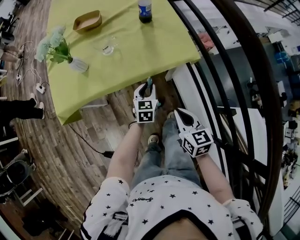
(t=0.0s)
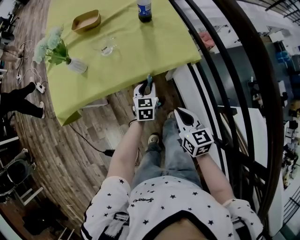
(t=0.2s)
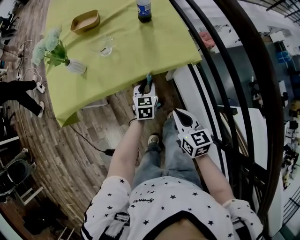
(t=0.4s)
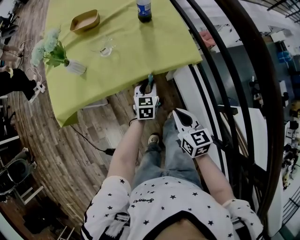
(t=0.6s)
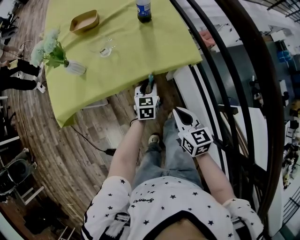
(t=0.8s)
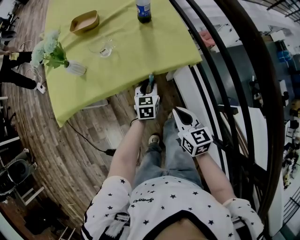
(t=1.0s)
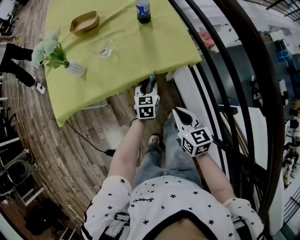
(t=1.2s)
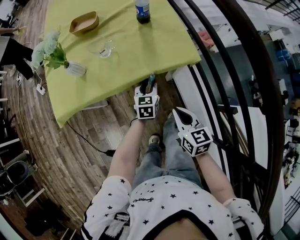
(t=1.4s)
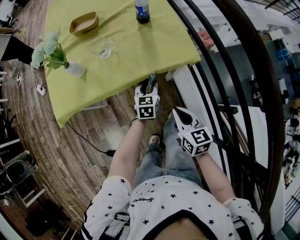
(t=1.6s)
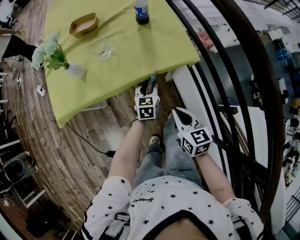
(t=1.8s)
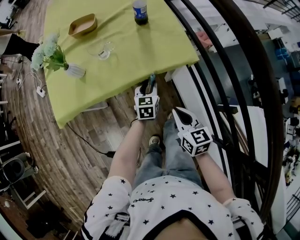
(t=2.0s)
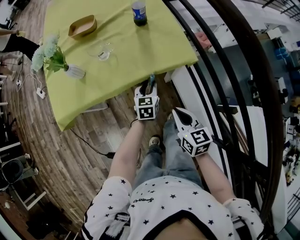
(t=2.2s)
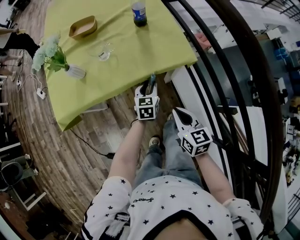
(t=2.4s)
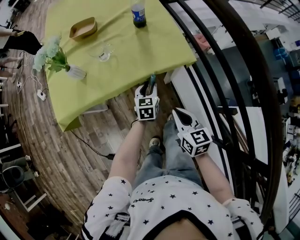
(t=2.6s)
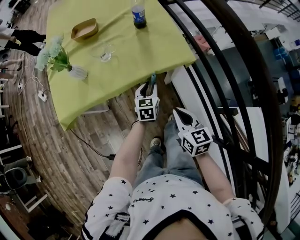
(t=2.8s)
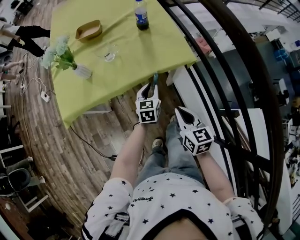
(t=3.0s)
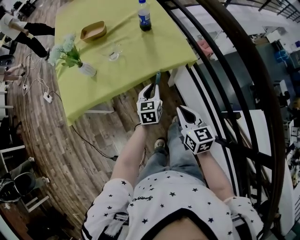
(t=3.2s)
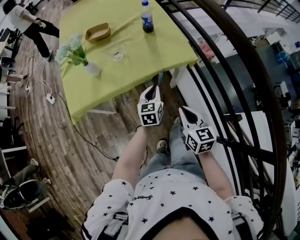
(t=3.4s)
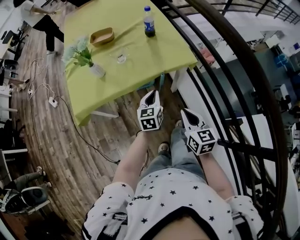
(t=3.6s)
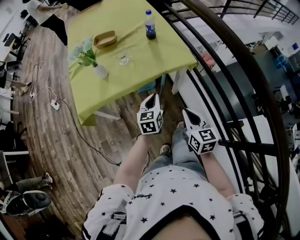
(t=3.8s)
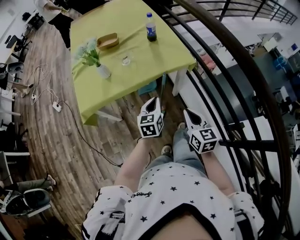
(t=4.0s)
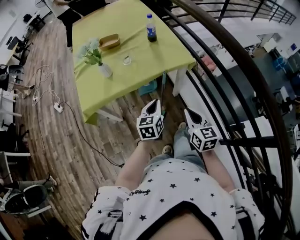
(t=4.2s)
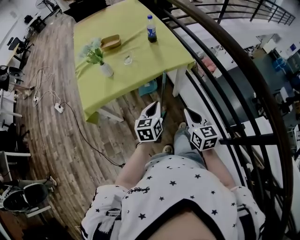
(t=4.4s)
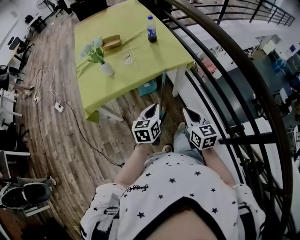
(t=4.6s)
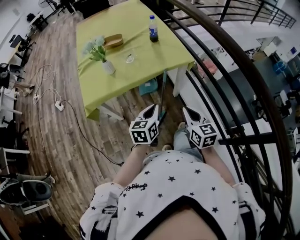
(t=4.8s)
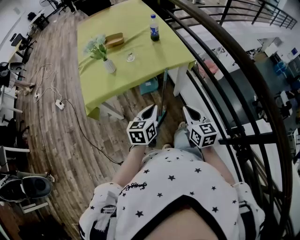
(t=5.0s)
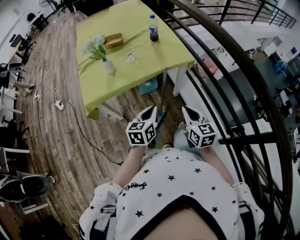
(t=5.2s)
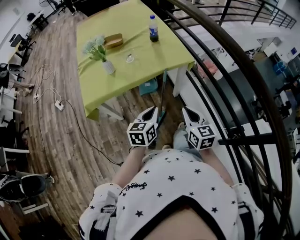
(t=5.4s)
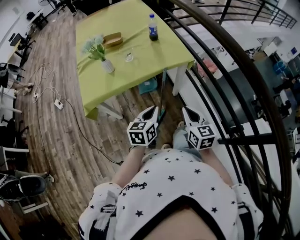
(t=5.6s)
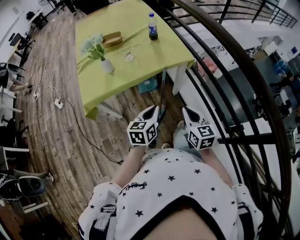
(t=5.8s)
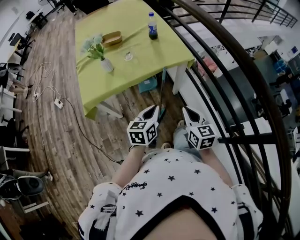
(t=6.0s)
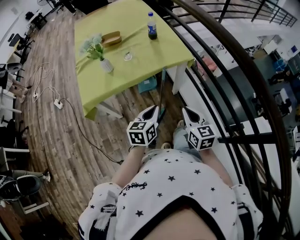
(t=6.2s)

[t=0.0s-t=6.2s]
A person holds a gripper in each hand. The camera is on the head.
t=0.0s to t=1.6s: The grippers make only small movements.
t=1.6s to t=3.2s: The right gripper changes place by some 5 cm. Meanwhile the left gripper goes roughly 5 cm upward.
t=3.2s to t=4.6s: The right gripper heads backward and upward, covering some 15 cm. Meanwhile the left gripper travels backward and upward by approximately 25 cm.
t=4.6s to t=6.2s: The grippers make only small movements.

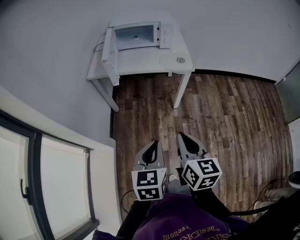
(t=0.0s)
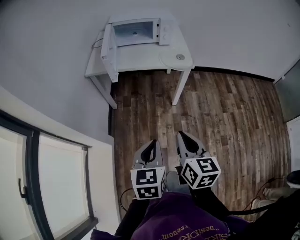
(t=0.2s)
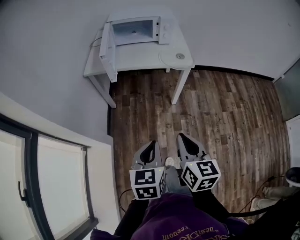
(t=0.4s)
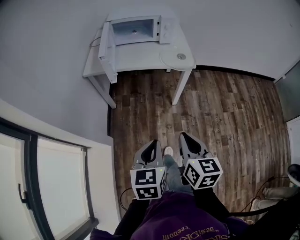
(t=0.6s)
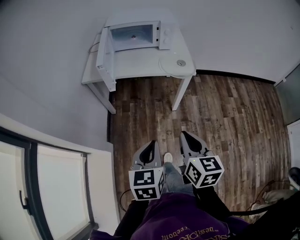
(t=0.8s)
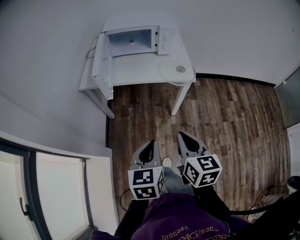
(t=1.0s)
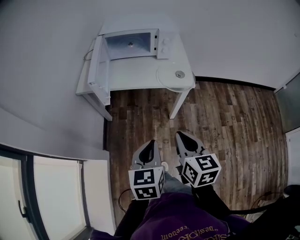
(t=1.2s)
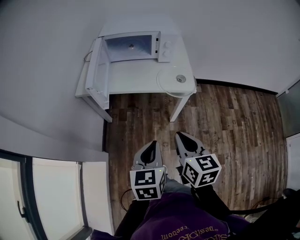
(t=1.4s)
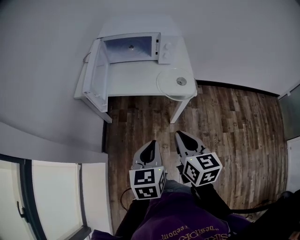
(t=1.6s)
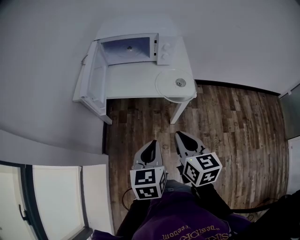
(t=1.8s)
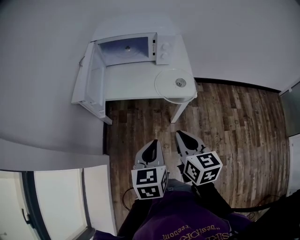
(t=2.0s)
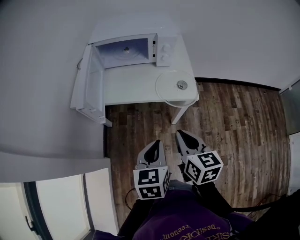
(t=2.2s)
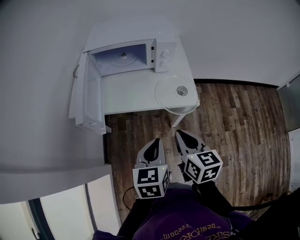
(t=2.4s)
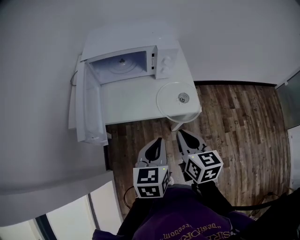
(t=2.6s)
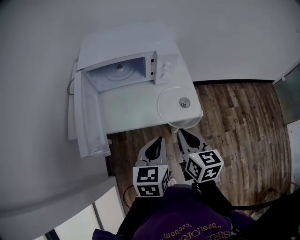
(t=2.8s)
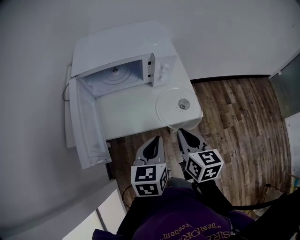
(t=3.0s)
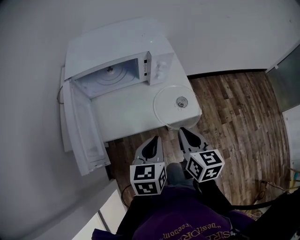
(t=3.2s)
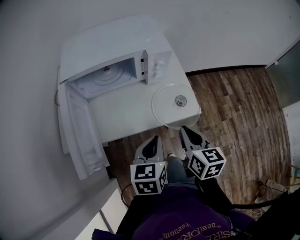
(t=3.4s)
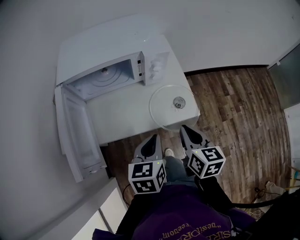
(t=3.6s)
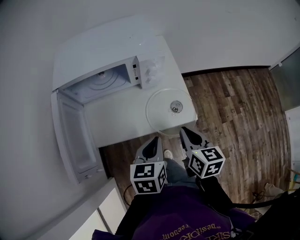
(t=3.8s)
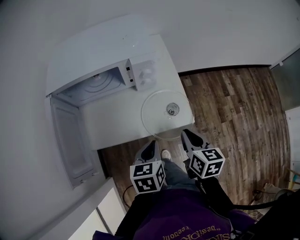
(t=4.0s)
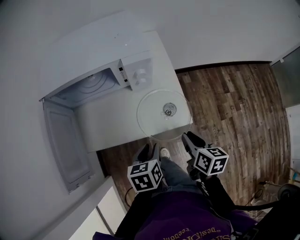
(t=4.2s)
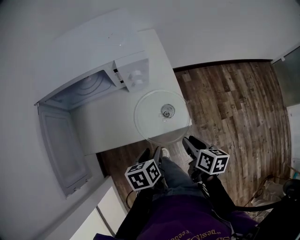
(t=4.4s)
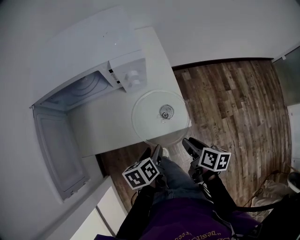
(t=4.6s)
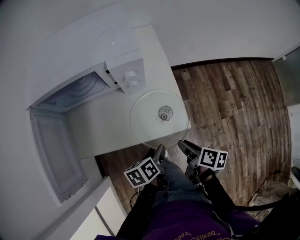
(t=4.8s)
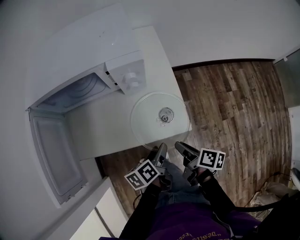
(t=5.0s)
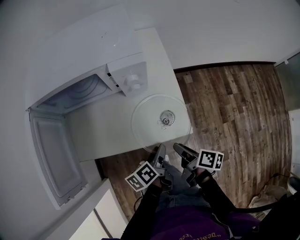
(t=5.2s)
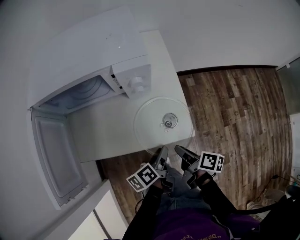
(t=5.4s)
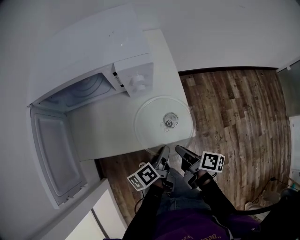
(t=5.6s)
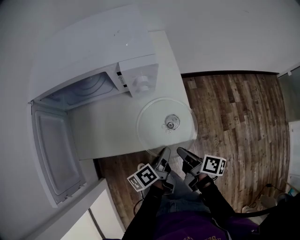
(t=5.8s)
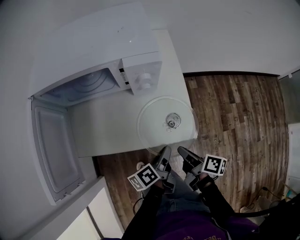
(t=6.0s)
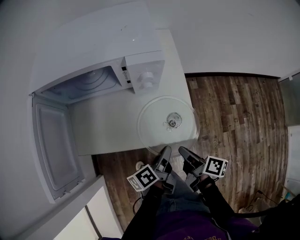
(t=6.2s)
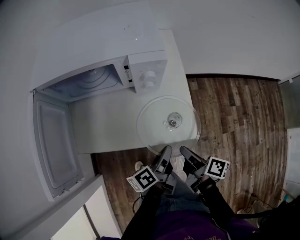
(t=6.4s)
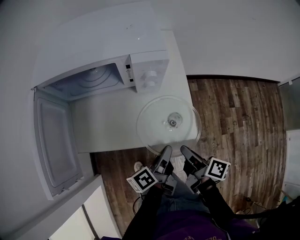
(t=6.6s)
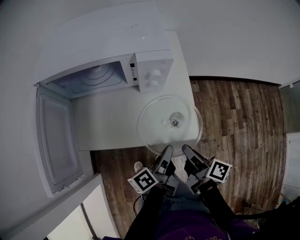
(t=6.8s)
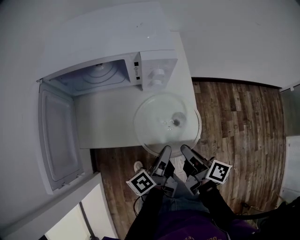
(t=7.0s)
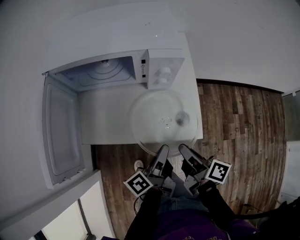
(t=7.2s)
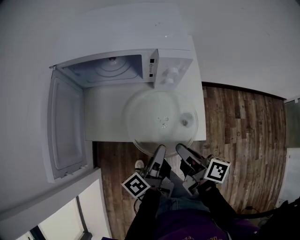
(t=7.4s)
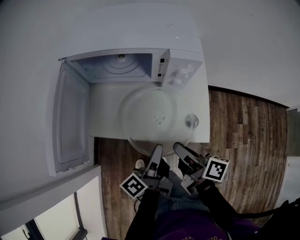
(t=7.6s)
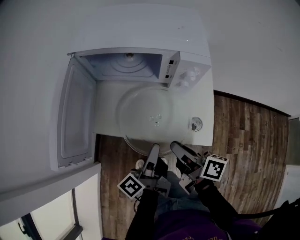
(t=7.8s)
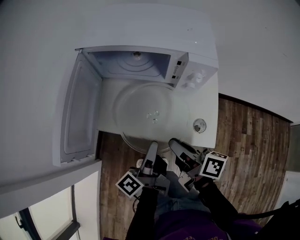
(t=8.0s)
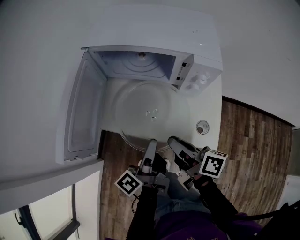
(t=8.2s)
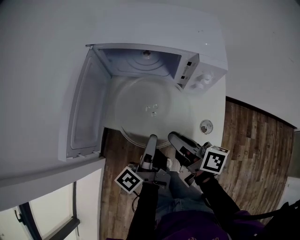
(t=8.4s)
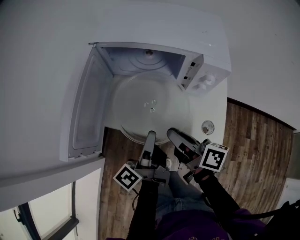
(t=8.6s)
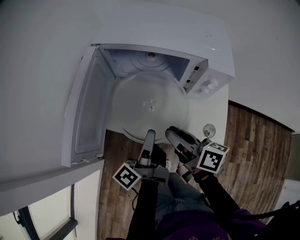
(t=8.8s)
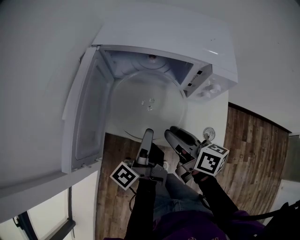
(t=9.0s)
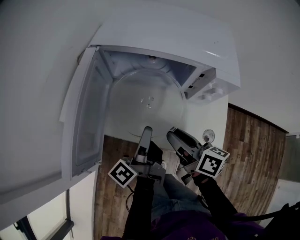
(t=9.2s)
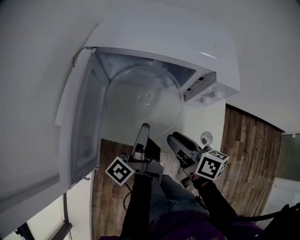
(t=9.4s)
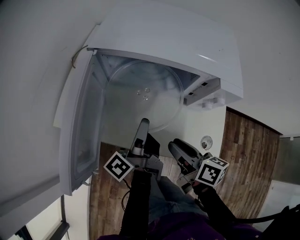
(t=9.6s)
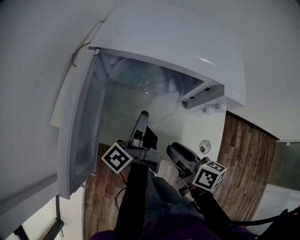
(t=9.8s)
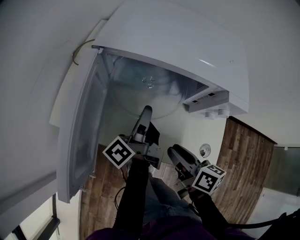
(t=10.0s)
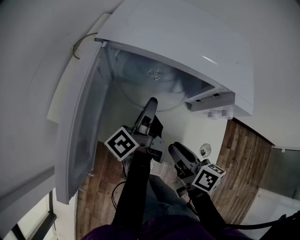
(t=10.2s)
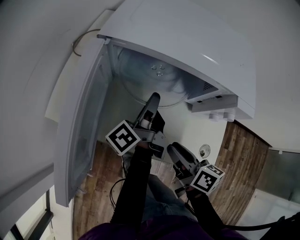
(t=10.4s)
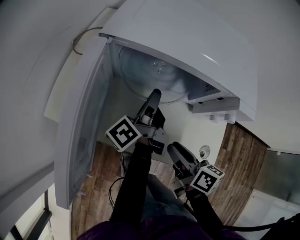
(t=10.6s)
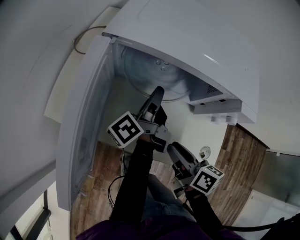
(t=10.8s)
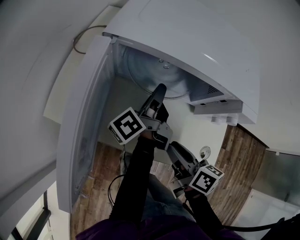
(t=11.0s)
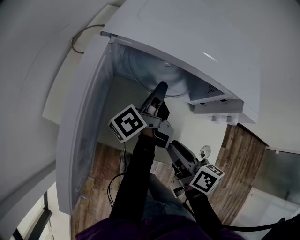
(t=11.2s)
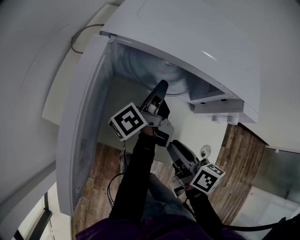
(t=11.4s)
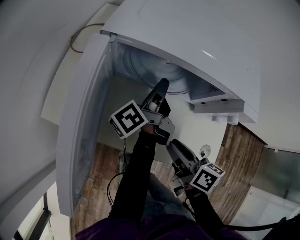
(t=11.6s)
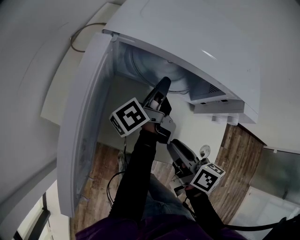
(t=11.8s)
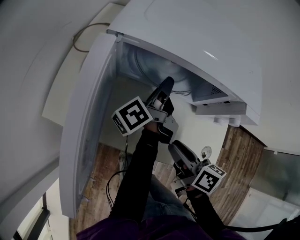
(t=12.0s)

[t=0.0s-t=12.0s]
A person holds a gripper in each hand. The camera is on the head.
t=0.0s to t=1.6s: Both grippers travel together forward, about 20 cm.
t=1.6s to t=3.0s: The grippers both shift forward by approximately 20 cm.
t=3.0s to t=4.4s: The left gripper is displaced downward and to the right by roughly 20 cm, changes its angle by approximately 30 degrees, and opens. The right gripper goes some 20 cm to the right and downward, rotates approximately 30 degrees, and opens its fingers.
t=4.4s to t=6.0s: The right gripper goes roughly 5 cm downward, and swivels roughly 30 degrees. The left gripper shifts about 5 cm to the right, rotates some 40 degrees, and closes.
t=6.0s to t=7.6s: The right gripper goes approximately 15 cm upward and to the left, and changes its angle by roughly 20 degrees, while the left gripper travels to the left and upward by approximately 15 cm, and turns by about 30 degrees.
t=7.6s to t=9.0s: The two grippers go about 15 cm forward and to the left. The right gripper rotates approximately 20 degrees.
t=9.0s to t=10.4s: The left gripper shifts some 15 cm forward. Meanwhile the right gripper ends up roughly 5 cm from where it was.
t=10.4s to t=12.0s: The left gripper moves forward, approximately 5 cm.

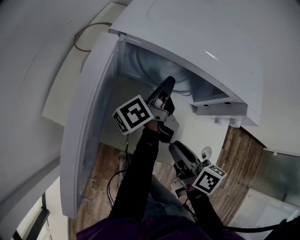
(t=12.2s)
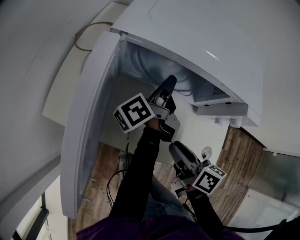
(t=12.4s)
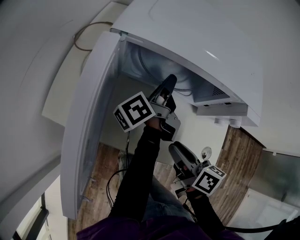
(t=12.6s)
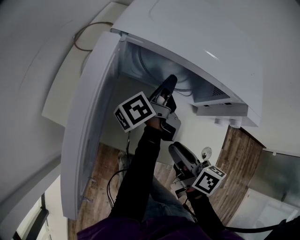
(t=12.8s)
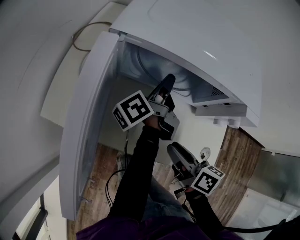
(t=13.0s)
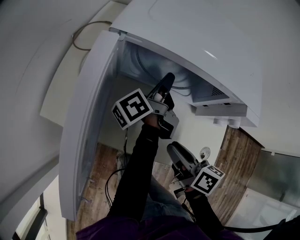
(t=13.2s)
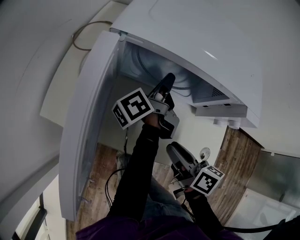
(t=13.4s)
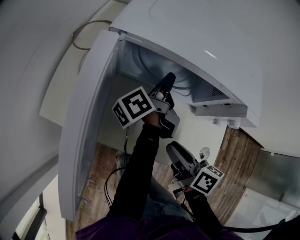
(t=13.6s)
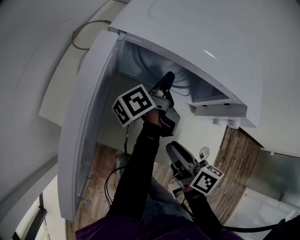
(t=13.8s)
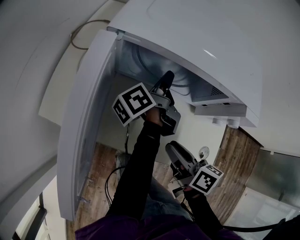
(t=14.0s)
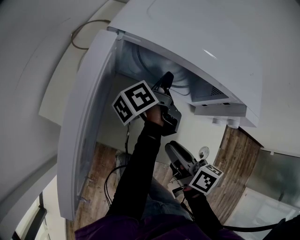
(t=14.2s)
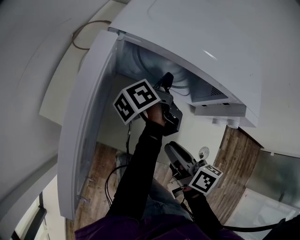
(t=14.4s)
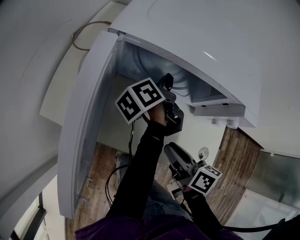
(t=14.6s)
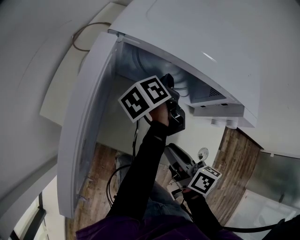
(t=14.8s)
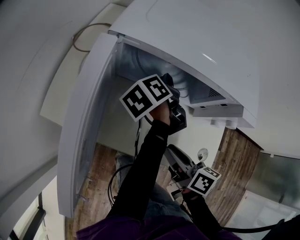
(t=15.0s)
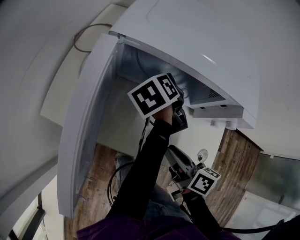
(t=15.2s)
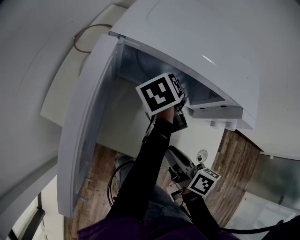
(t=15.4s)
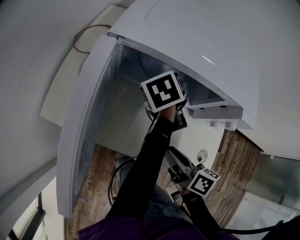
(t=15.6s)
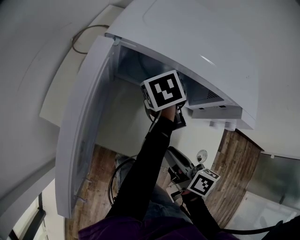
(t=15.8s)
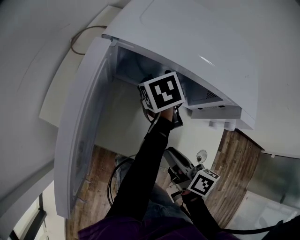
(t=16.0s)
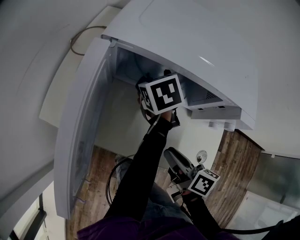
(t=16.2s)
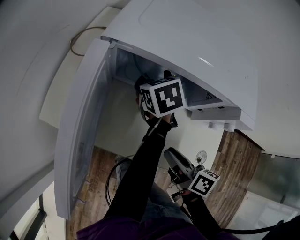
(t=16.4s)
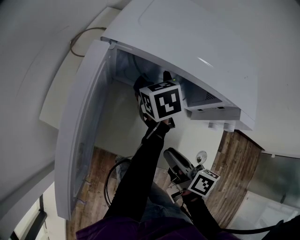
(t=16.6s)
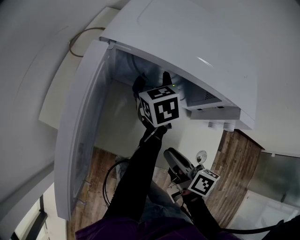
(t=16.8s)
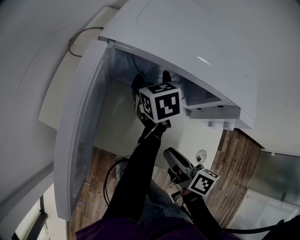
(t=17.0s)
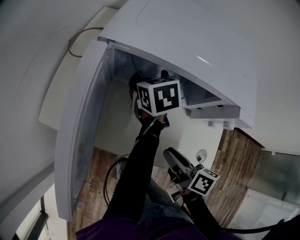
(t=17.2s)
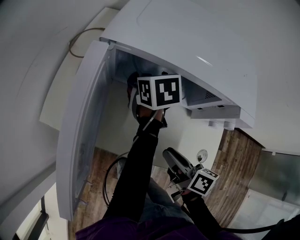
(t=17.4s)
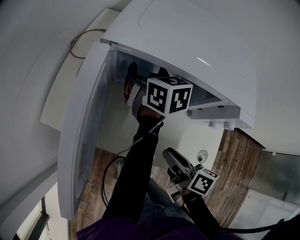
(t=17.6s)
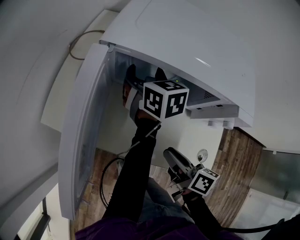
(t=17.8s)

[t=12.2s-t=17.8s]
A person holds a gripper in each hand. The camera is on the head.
t=12.2s to t=13.6s: There are only small adjustments of the grippers.
t=13.6s to t=15.0s: The left gripper rotates about 30 degrees.
t=15.0s to t=16.4s: The left gripper turns by approximately 40 degrees, and opens up.
t=16.4s to t=17.8s: The left gripper changes its angle by some 30 degrees.
